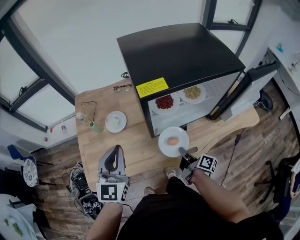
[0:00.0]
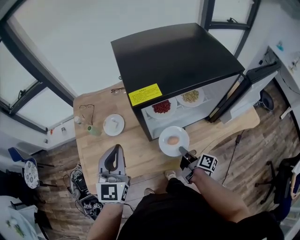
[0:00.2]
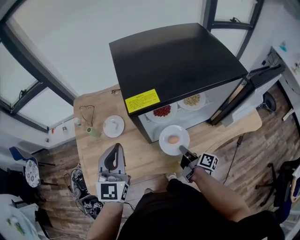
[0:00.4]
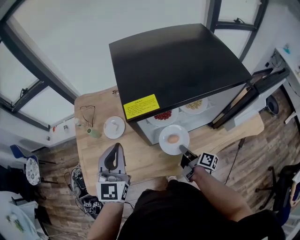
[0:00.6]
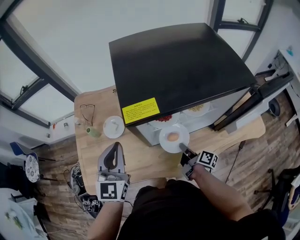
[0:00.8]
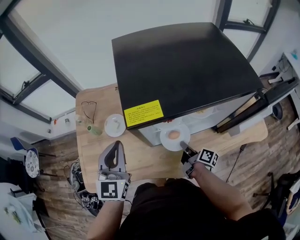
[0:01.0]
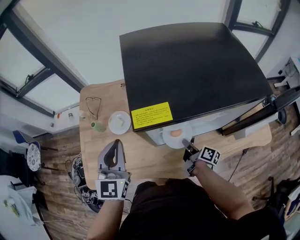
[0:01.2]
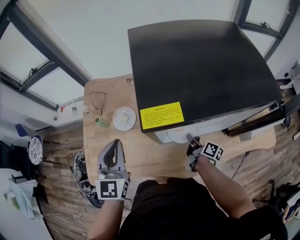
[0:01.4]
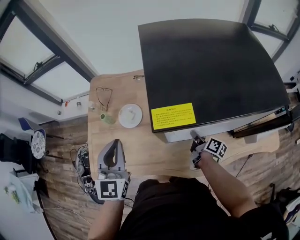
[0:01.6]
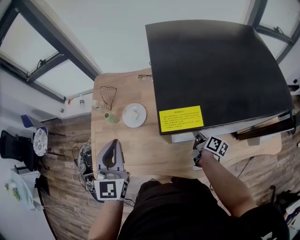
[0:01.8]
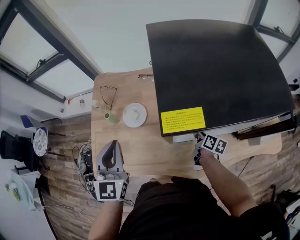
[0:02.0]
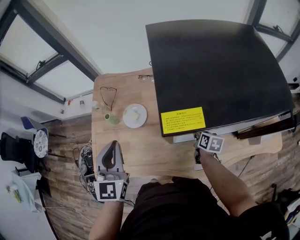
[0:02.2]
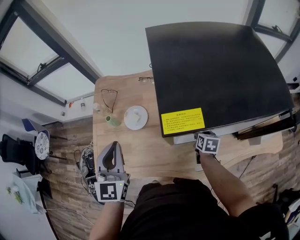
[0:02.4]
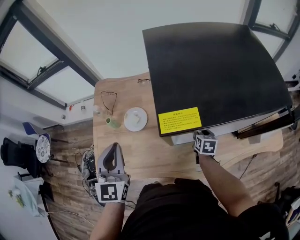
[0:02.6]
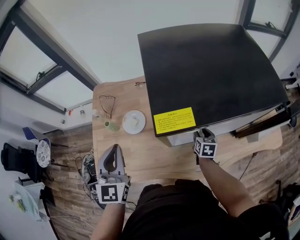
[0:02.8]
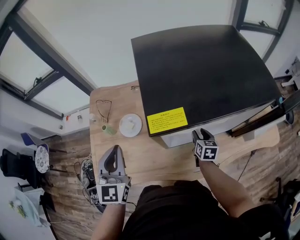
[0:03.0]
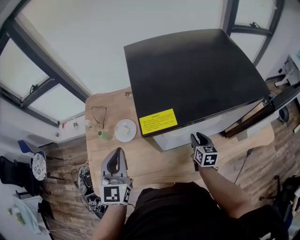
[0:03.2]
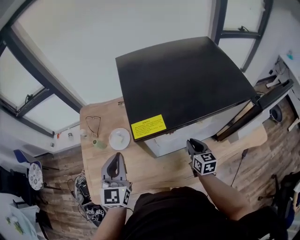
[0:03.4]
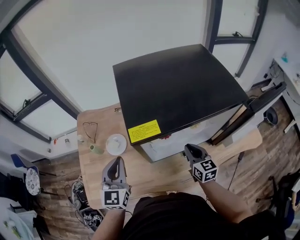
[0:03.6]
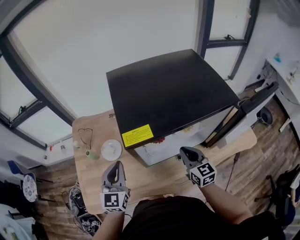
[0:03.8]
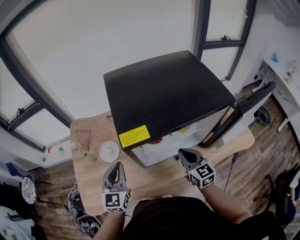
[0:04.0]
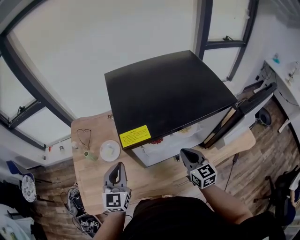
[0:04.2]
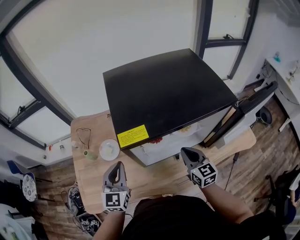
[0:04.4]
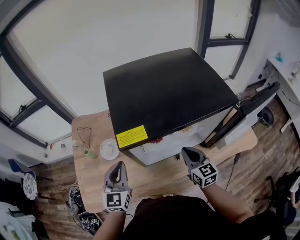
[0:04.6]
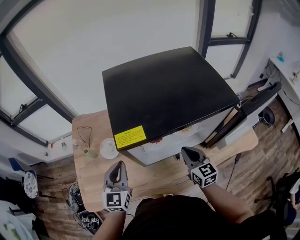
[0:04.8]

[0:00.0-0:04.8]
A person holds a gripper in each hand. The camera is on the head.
0:00.0 to 0:01.6: The right gripper shifts some 15 cm forward; the left gripper heads forward, covering some 5 cm.
0:01.6 to 0:03.2: The right gripper changes place by some 5 cm, twists some 50 degrees counterclockwise, seen from behind, and opens its fingers.
0:03.2 to 0:04.8: The left gripper travels to the right by approximately 5 cm; the right gripper travels upward by roughly 10 cm, changes its angle by some 20 degrees, and closes its fingers.

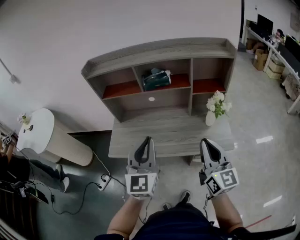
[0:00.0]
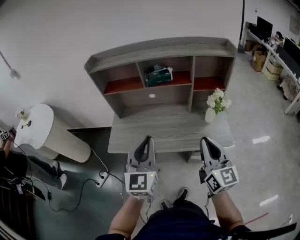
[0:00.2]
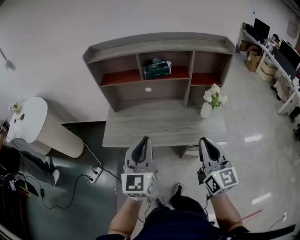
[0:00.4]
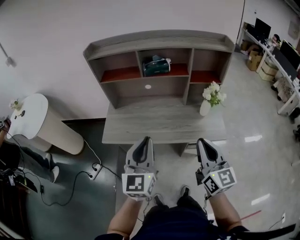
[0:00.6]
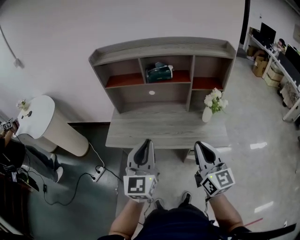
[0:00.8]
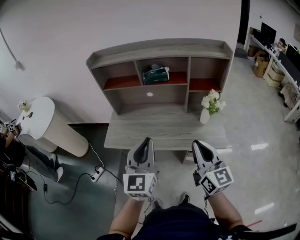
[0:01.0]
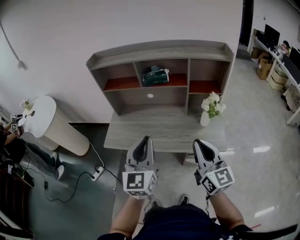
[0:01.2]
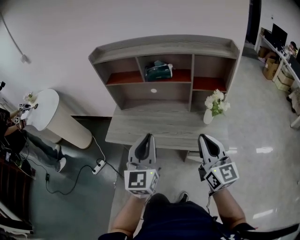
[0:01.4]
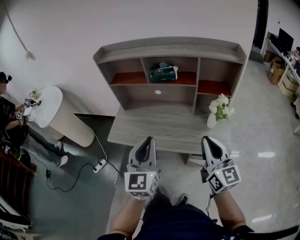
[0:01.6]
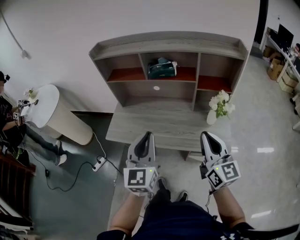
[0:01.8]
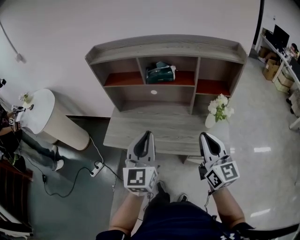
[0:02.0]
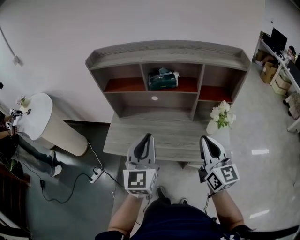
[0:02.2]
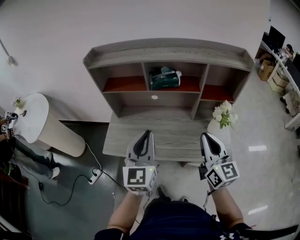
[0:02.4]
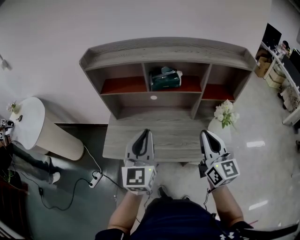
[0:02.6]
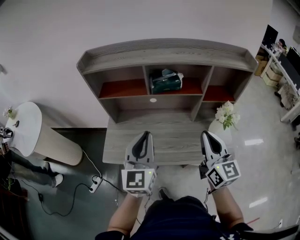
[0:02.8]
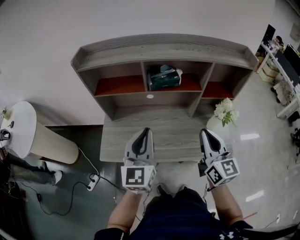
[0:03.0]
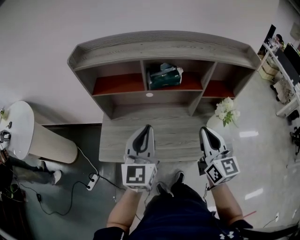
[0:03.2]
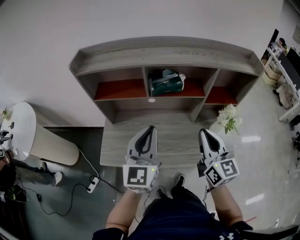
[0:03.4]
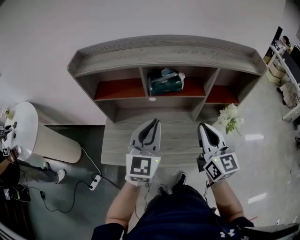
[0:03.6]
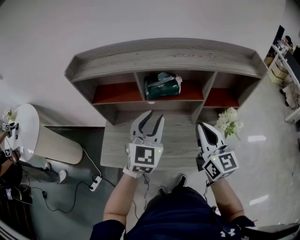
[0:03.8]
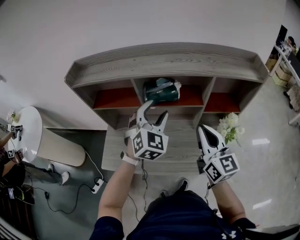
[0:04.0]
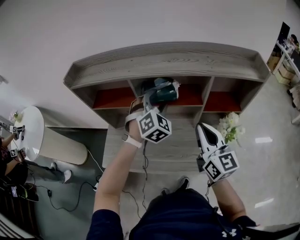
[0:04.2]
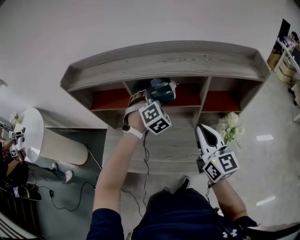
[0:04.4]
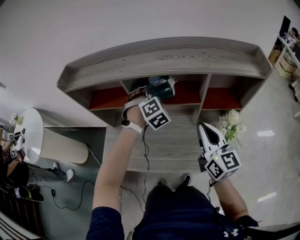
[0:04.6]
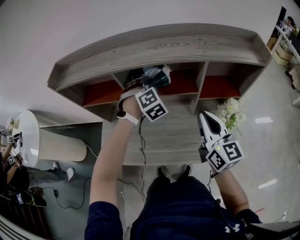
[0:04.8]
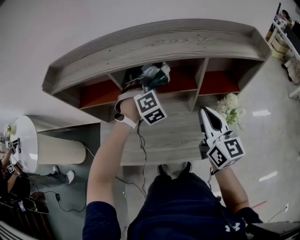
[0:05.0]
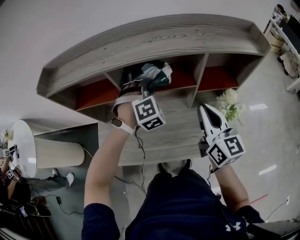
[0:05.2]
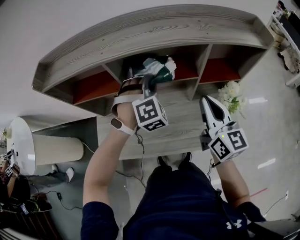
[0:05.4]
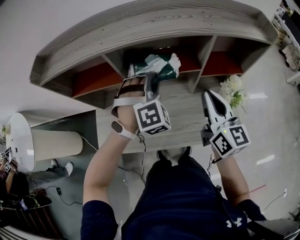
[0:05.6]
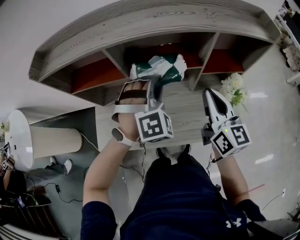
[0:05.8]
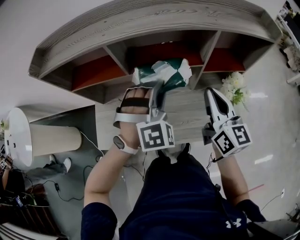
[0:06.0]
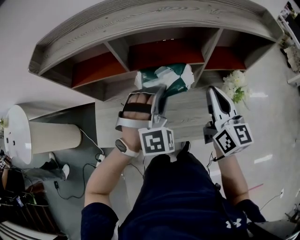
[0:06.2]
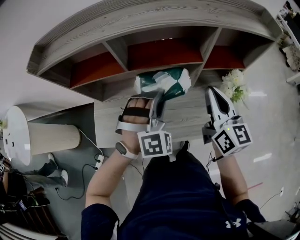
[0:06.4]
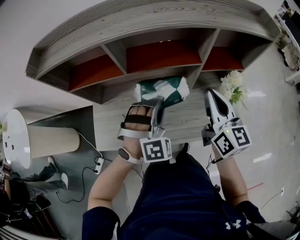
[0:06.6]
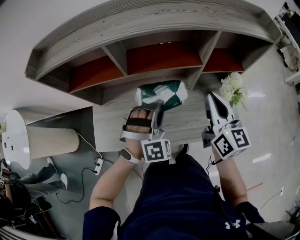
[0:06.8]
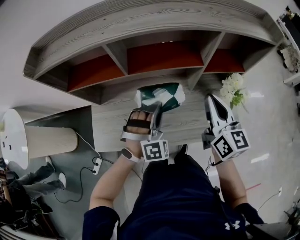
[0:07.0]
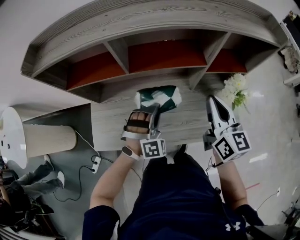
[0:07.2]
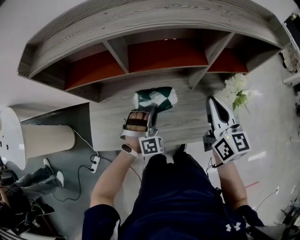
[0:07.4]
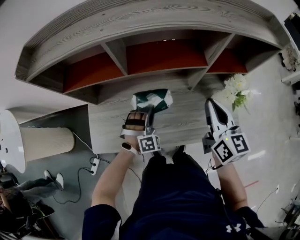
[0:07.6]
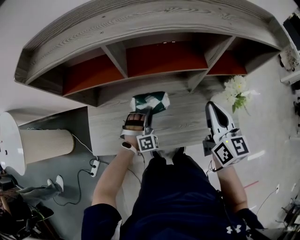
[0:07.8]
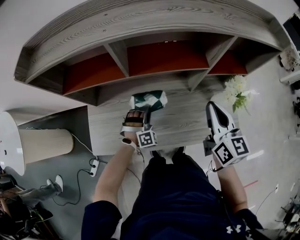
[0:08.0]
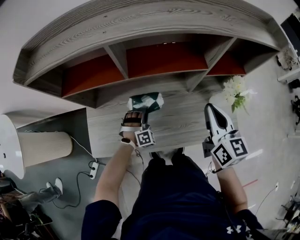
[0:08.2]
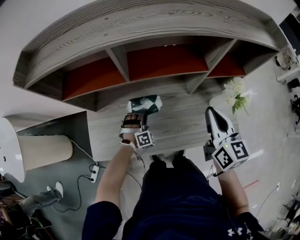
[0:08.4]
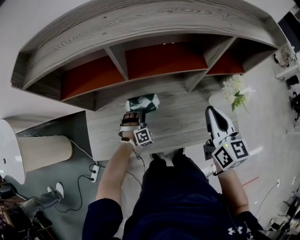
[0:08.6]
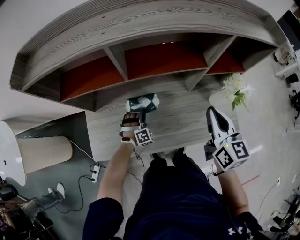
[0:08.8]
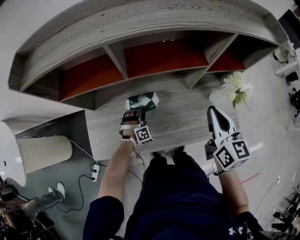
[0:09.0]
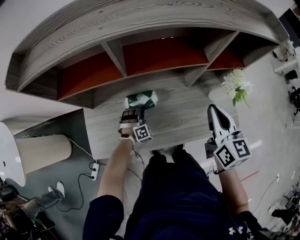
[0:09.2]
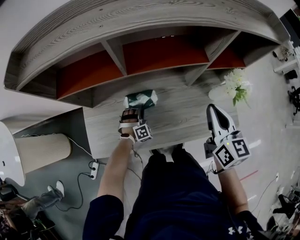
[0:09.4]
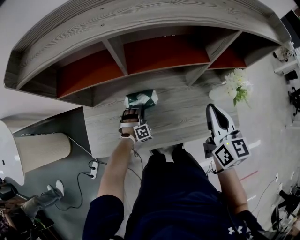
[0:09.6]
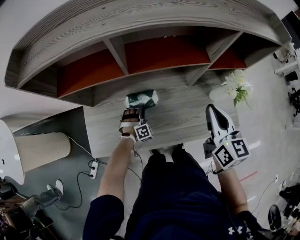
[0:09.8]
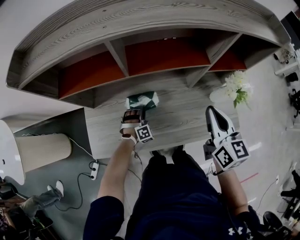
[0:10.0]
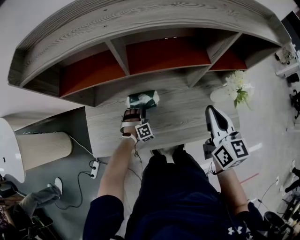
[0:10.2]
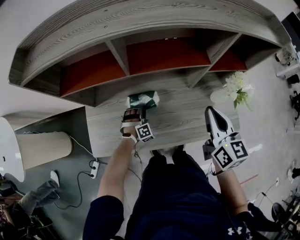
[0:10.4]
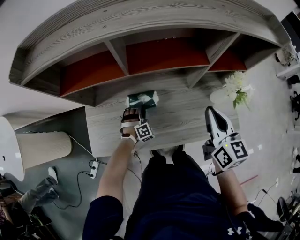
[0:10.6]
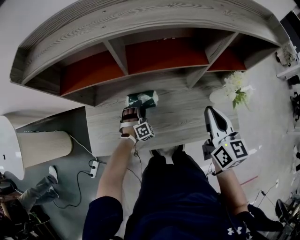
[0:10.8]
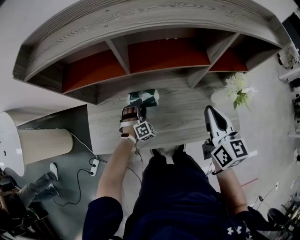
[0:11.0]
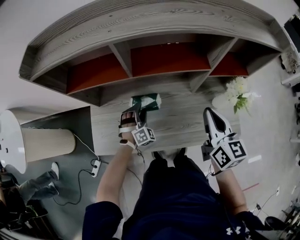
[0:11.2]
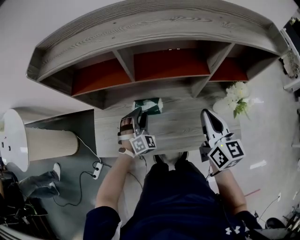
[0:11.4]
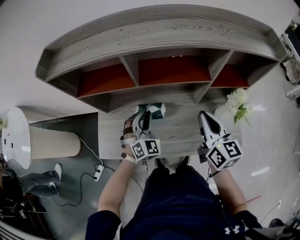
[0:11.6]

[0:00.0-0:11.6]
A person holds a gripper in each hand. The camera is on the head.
0:00.0 to 0:01.4: The left gripper goes approximately 5 cm backward.
0:01.4 to 0:02.8: The grippers both shift forward and to the left by approximately 20 cm.
0:02.8 to 0:04.4: The right gripper shifts roughly 15 cm forward, while the left gripper heads forward, covering roughly 30 cm, twists roughly 60 degrees clockwise, seen from behind, and opens up.
0:04.4 to 0:05.8: The left gripper heads backward, covering roughly 10 cm, swivels about 20 degrees, and closes.
0:05.8 to 0:07.2: The left gripper travels downward and backward by roughly 15 cm.
0:07.2 to 0:08.8: The left gripper goes approximately 20 cm downward.
0:08.8 to 0:10.2: The grippers stay close to where they were, moving slightly.
0:10.2 to 0:11.6: The left gripper heads upward, covering some 25 cm, rotates roughly 40 degrees, and closes up.

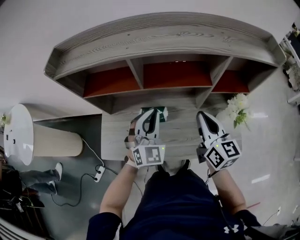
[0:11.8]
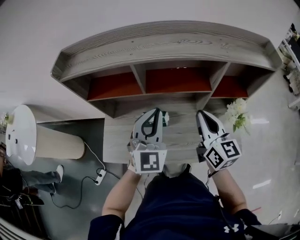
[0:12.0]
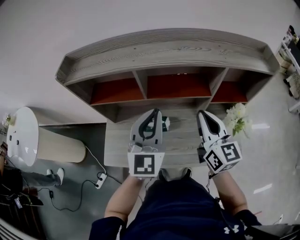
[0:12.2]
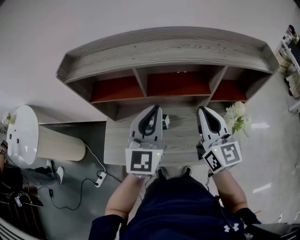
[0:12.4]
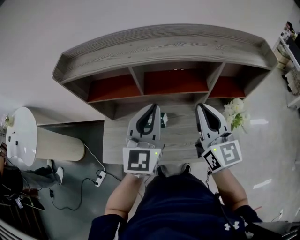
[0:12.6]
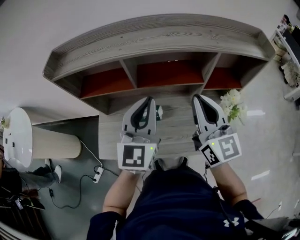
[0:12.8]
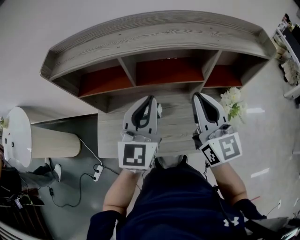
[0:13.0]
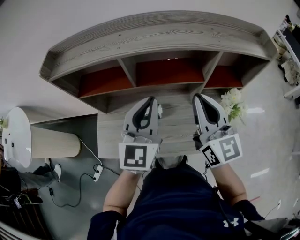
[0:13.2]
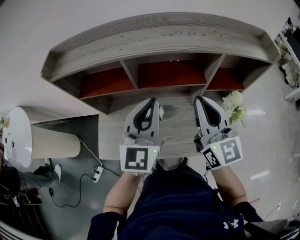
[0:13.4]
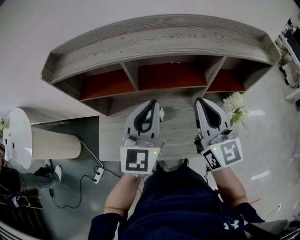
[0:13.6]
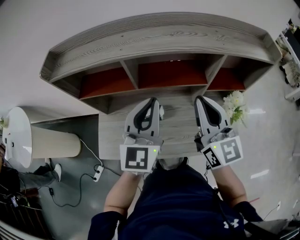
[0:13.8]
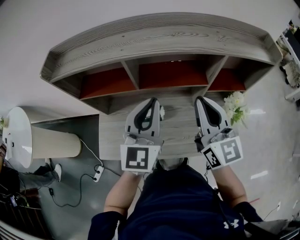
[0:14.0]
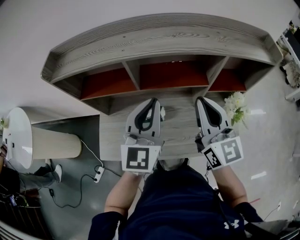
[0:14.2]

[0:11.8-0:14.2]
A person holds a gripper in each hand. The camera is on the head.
0:11.8 to 0:13.0: The two grippers go about 10 cm upward. The left gripper swivels approximately 40 degrees.
0:13.0 to 0:14.2: There are only small adjustments of the grippers.

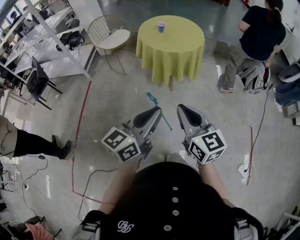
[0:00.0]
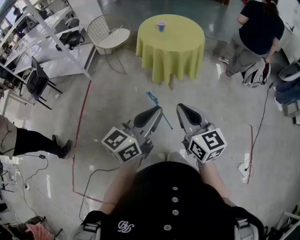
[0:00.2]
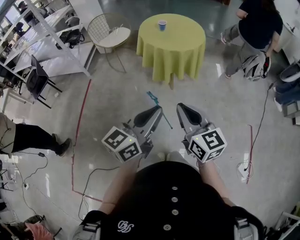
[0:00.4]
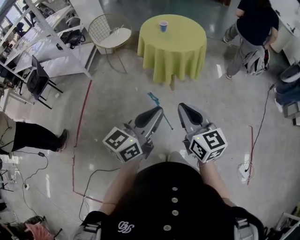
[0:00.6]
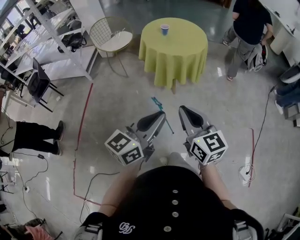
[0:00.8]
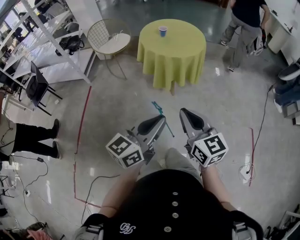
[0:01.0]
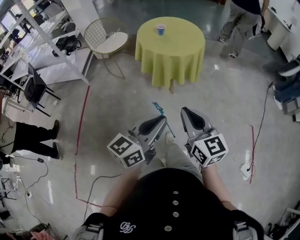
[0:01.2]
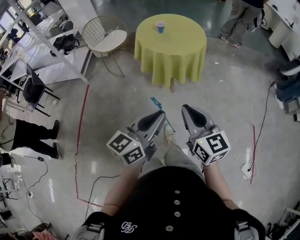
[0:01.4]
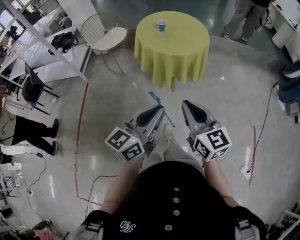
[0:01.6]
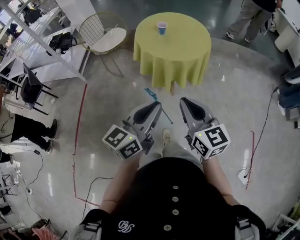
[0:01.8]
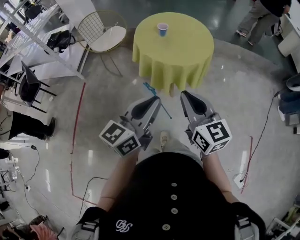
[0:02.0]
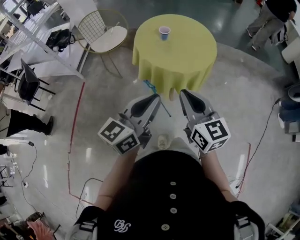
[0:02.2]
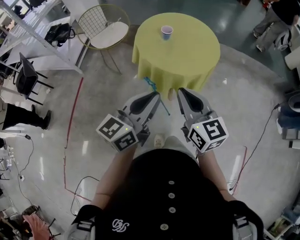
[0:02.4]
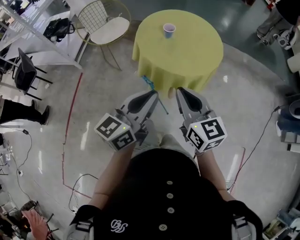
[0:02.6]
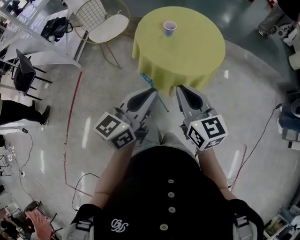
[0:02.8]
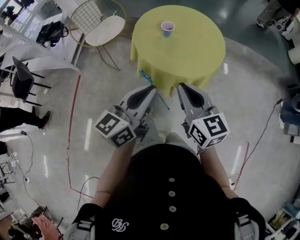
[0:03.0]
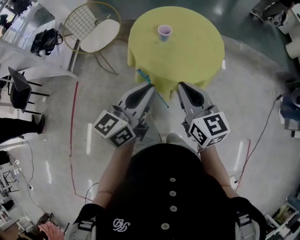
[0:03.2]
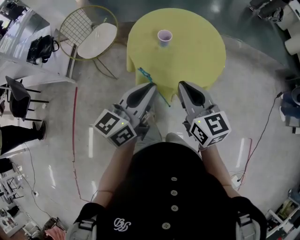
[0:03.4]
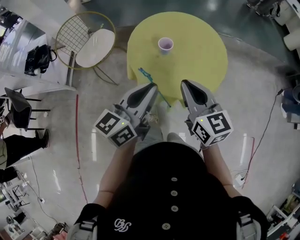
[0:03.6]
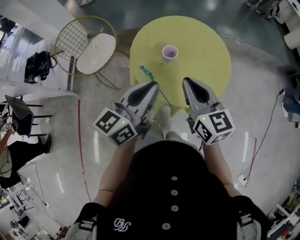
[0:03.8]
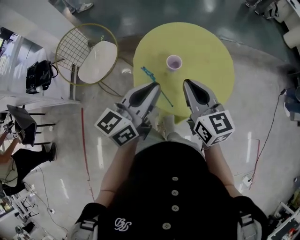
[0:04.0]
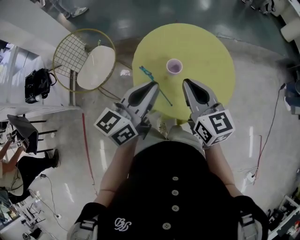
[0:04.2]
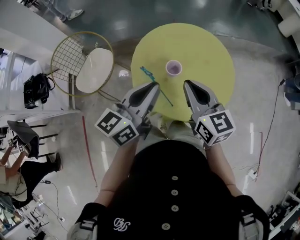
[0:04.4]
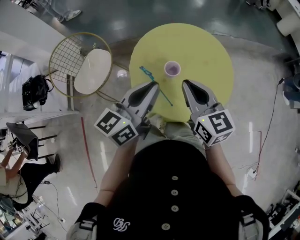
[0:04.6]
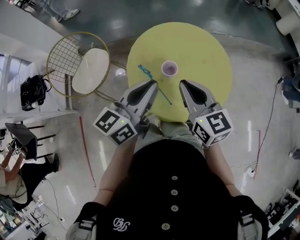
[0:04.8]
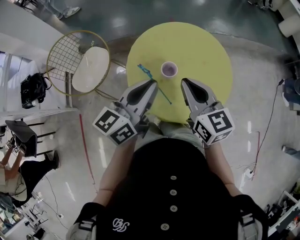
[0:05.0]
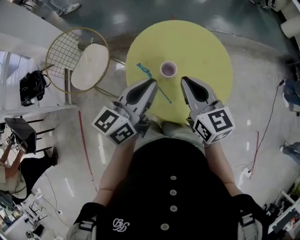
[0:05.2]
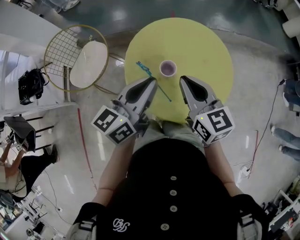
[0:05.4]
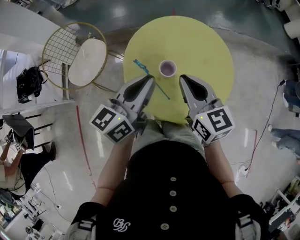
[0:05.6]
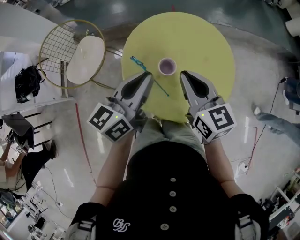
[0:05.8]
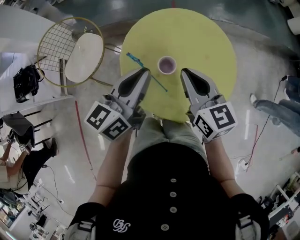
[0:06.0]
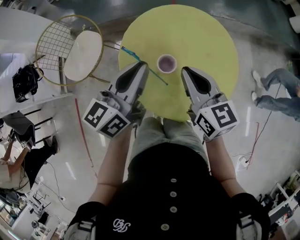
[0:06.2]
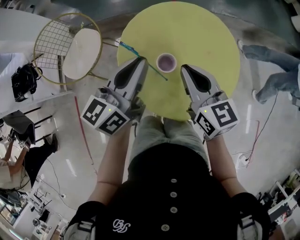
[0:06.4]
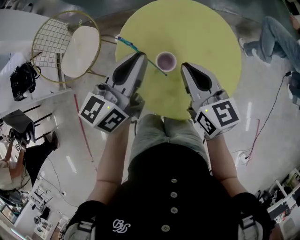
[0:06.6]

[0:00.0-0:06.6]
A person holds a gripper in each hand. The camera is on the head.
0:00.0 to 0:01.6: The grippers both shift forward by roughly 10 cm.
0:01.6 to 0:03.2: Both grippers travel together forward, about 35 cm.
0:03.2 to 0:05.0: The two grippers go roughly 25 cm forward.
0:05.0 to 0:06.6: The right gripper is displaced forward and downward by approximately 10 cm; the left gripper moves forward, about 10 cm.
